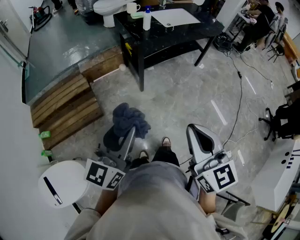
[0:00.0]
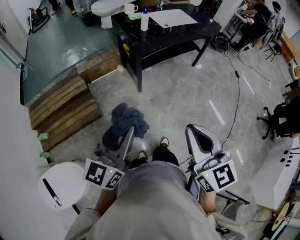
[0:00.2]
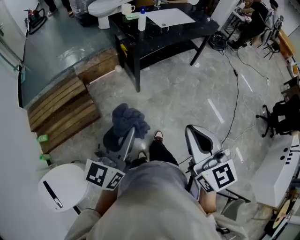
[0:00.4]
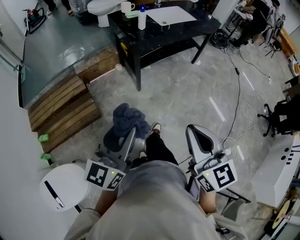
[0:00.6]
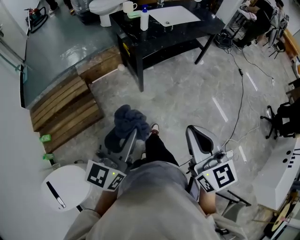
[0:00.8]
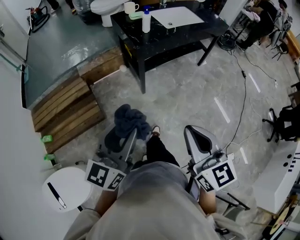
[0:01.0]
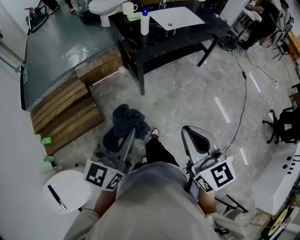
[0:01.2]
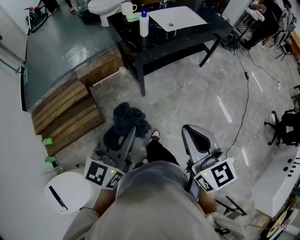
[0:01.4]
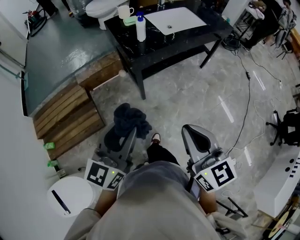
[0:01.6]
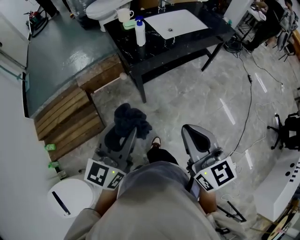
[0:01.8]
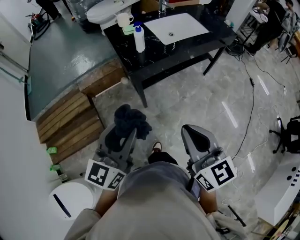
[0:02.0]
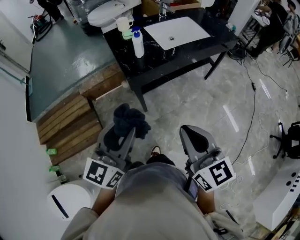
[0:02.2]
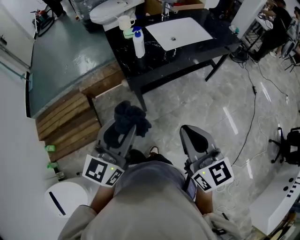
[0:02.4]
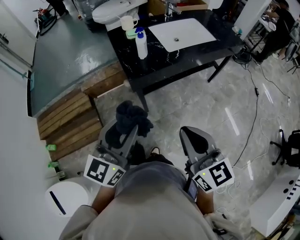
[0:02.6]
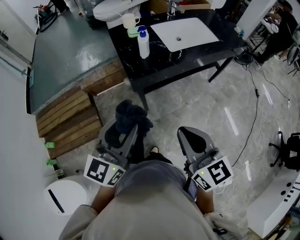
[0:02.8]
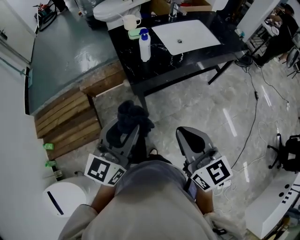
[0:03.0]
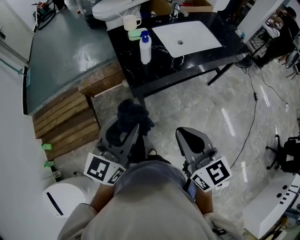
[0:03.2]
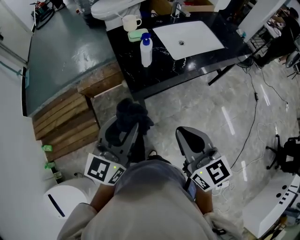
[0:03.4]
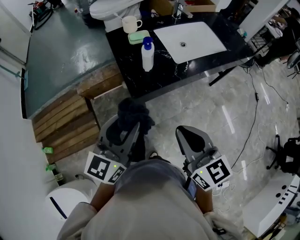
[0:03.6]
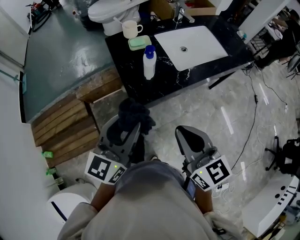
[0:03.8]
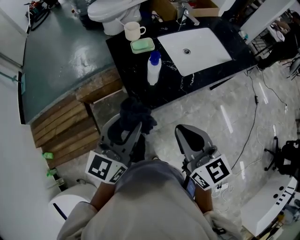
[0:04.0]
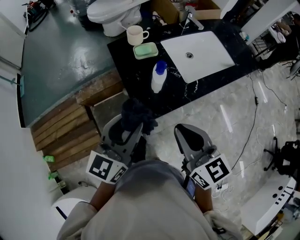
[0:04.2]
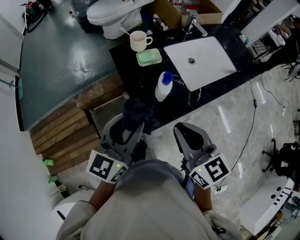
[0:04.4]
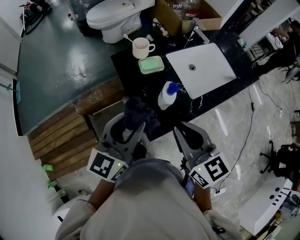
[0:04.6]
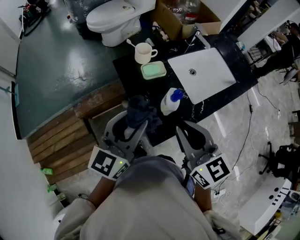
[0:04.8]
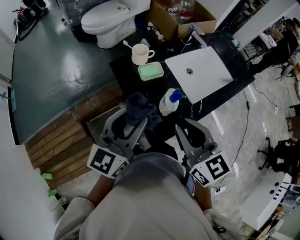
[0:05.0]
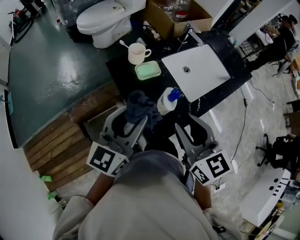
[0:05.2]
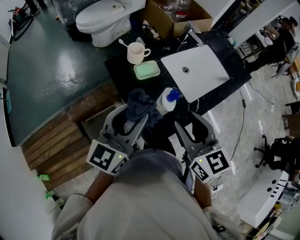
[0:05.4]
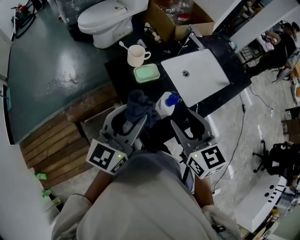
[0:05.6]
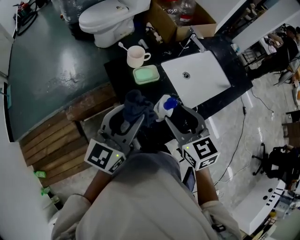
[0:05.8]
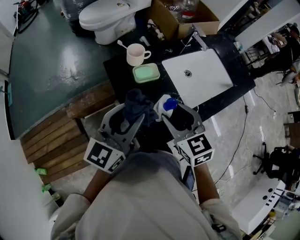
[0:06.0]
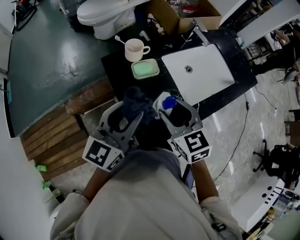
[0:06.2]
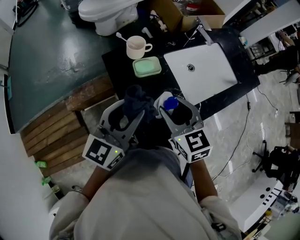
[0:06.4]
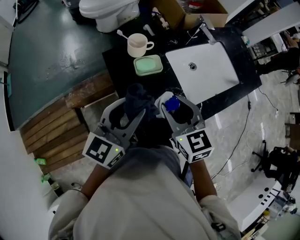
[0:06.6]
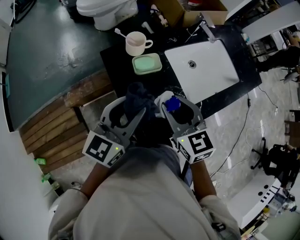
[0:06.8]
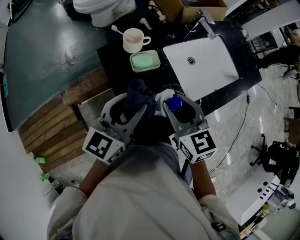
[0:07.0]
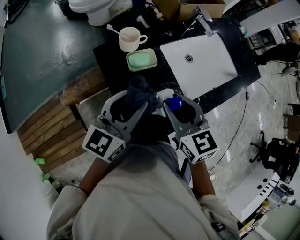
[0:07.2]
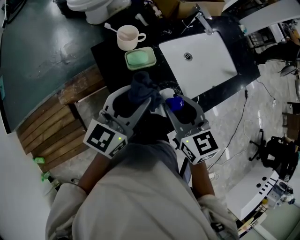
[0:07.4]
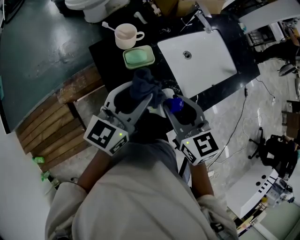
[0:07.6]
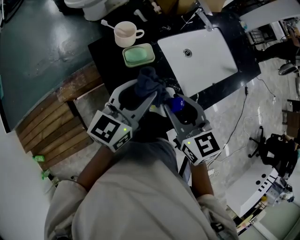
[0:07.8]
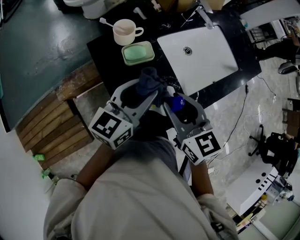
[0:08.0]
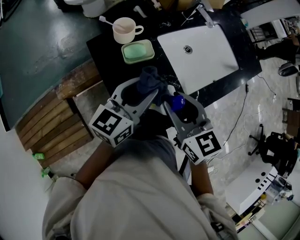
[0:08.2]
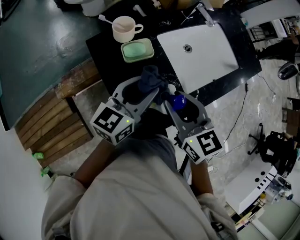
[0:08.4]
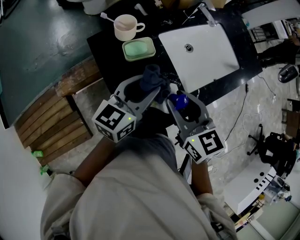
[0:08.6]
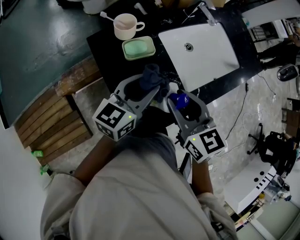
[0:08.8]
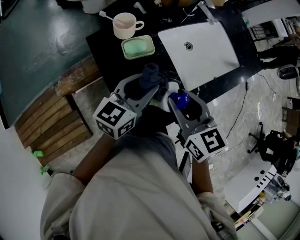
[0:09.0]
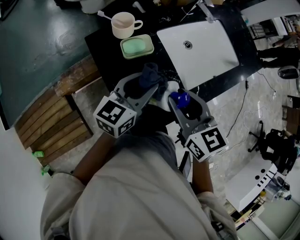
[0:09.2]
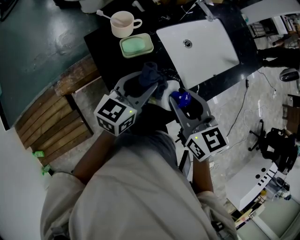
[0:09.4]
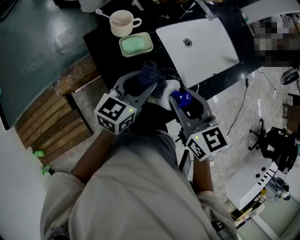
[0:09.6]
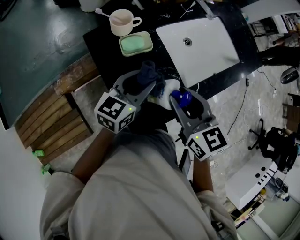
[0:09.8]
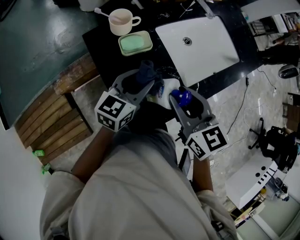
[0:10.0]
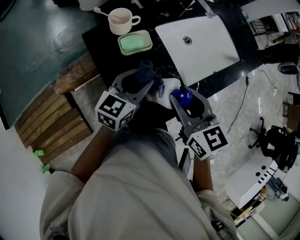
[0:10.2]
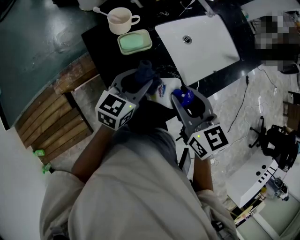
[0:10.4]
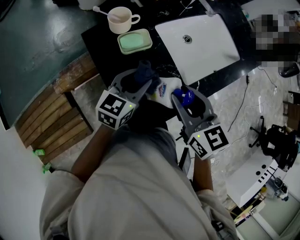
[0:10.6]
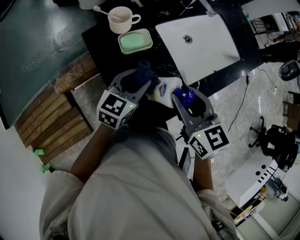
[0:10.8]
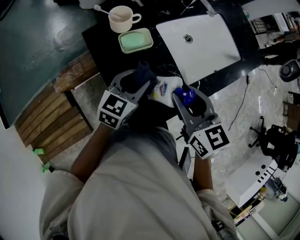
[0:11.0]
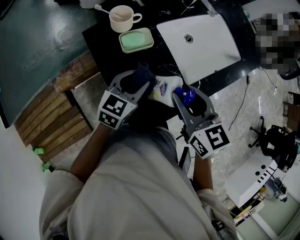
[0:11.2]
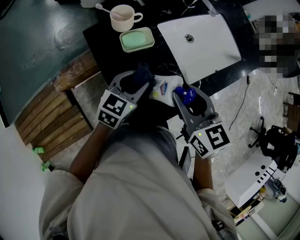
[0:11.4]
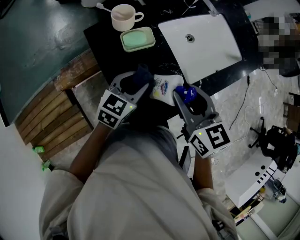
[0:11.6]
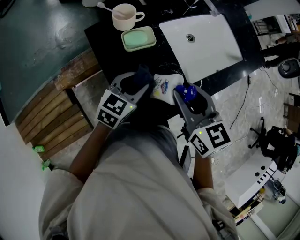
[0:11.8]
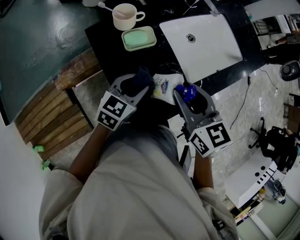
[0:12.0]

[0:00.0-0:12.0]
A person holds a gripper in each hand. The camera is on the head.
0:00.0 to 0:01.6: The grippers both shift forward by roughly 20 cm.
0:01.6 to 0:03.0: Both grippers travel together forward, roughly 15 cm.
0:03.0 to 0:04.4: The two grippers go some 25 cm forward.
0:04.4 to 0:06.0: The left gripper is displaced forward by roughly 10 cm; the right gripper heads forward and downward, covering roughly 15 cm, swivels about 20 degrees, and opens its fingers.
0:06.0 to 0:07.6: The left gripper travels forward by approximately 5 cm.
0:07.6 to 0:09.0: The left gripper heads downward, covering some 5 cm.
0:09.0 to 0:10.4: The left gripper moves downward, roughly 5 cm.
0:10.4 to 0:12.0: The grippers move only a little.

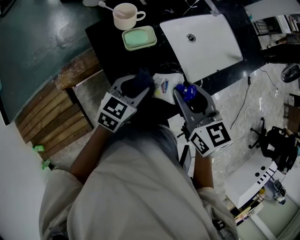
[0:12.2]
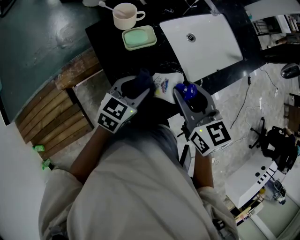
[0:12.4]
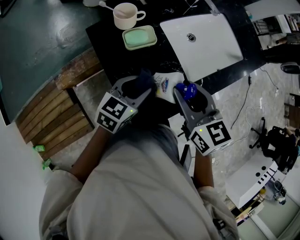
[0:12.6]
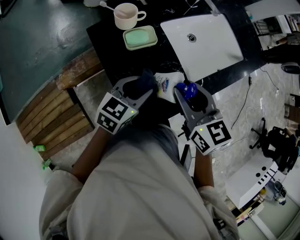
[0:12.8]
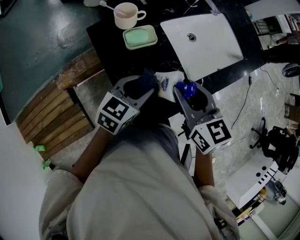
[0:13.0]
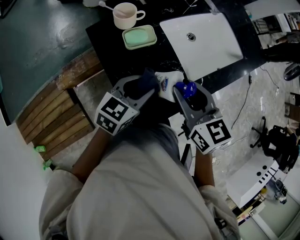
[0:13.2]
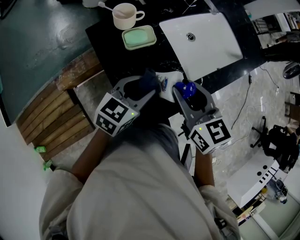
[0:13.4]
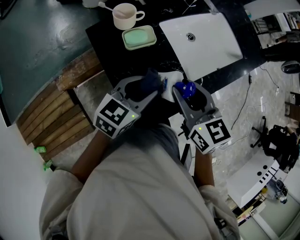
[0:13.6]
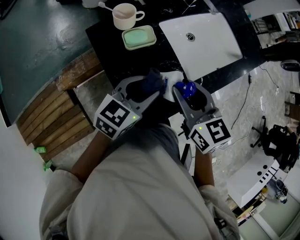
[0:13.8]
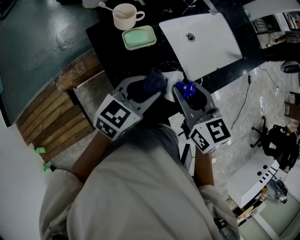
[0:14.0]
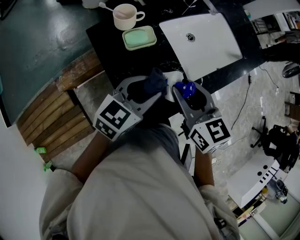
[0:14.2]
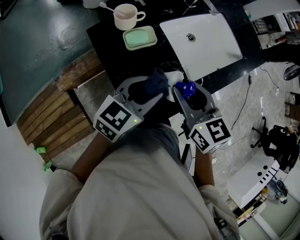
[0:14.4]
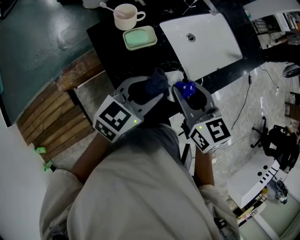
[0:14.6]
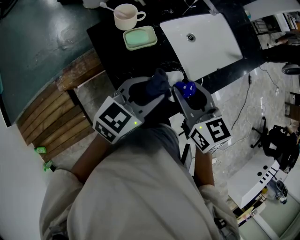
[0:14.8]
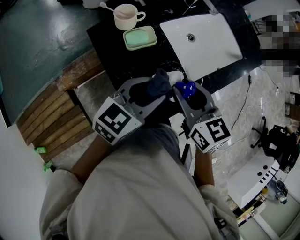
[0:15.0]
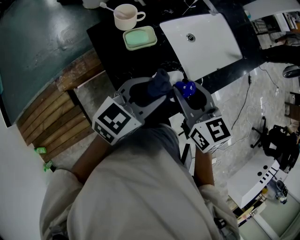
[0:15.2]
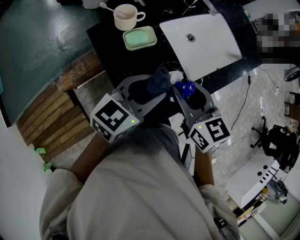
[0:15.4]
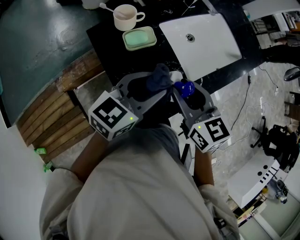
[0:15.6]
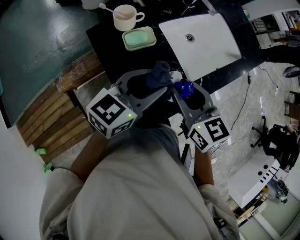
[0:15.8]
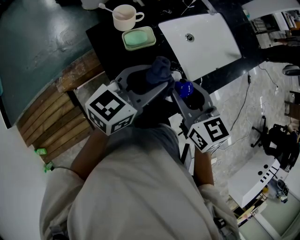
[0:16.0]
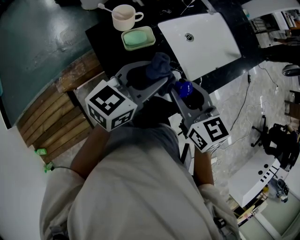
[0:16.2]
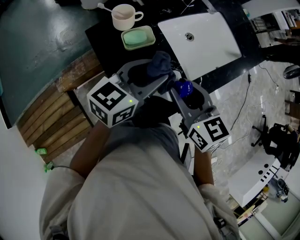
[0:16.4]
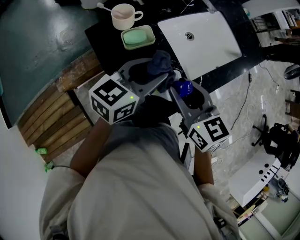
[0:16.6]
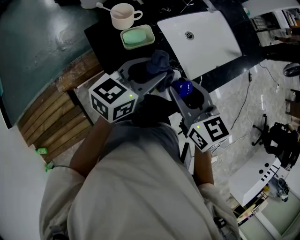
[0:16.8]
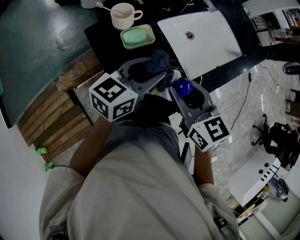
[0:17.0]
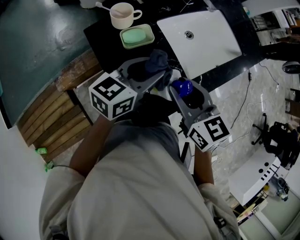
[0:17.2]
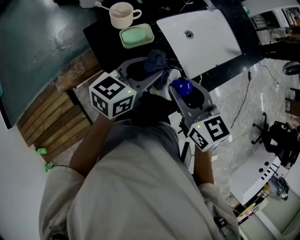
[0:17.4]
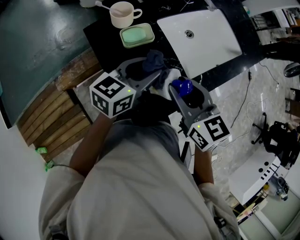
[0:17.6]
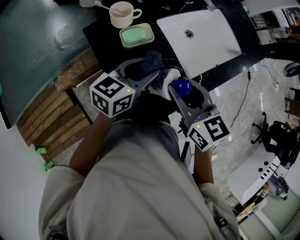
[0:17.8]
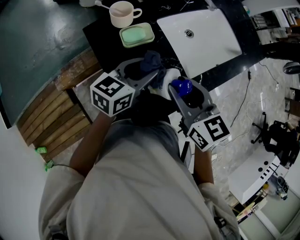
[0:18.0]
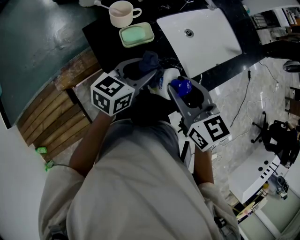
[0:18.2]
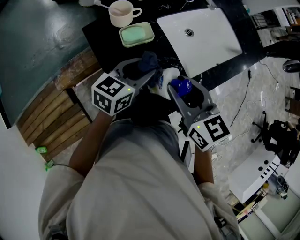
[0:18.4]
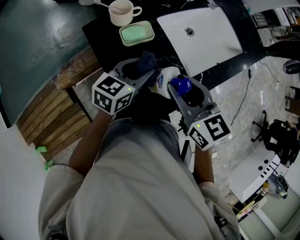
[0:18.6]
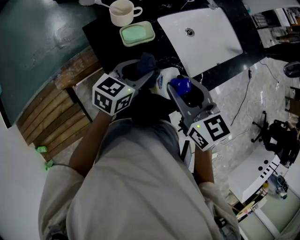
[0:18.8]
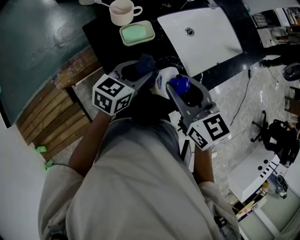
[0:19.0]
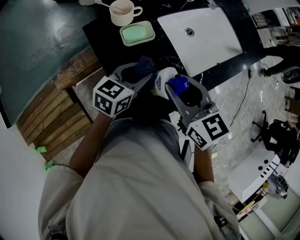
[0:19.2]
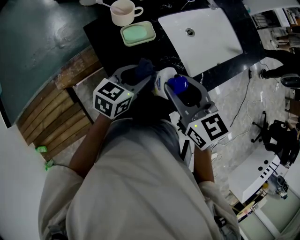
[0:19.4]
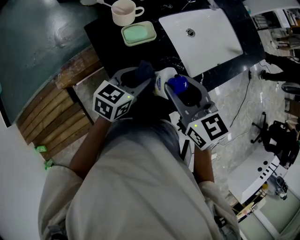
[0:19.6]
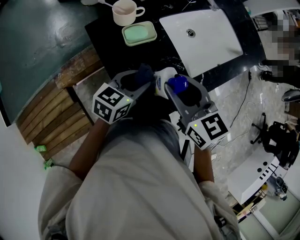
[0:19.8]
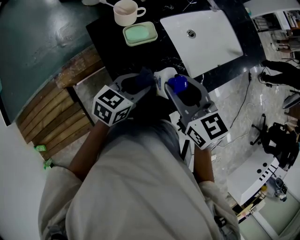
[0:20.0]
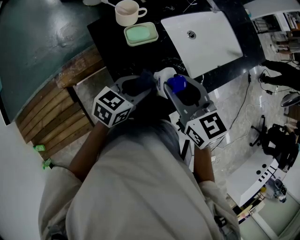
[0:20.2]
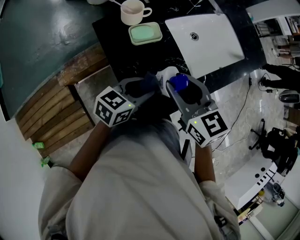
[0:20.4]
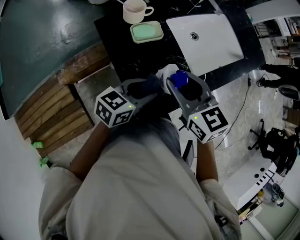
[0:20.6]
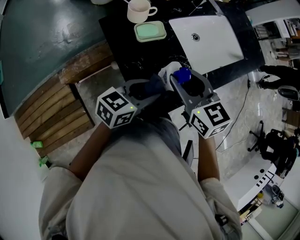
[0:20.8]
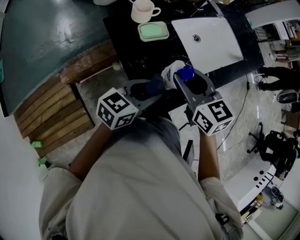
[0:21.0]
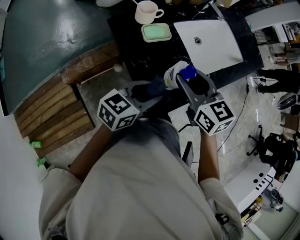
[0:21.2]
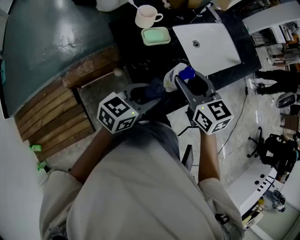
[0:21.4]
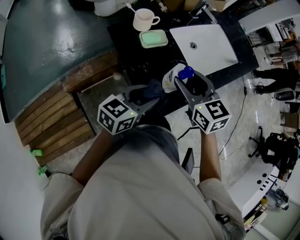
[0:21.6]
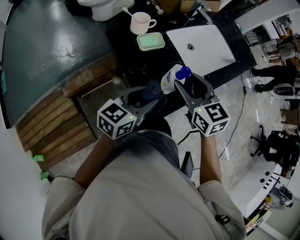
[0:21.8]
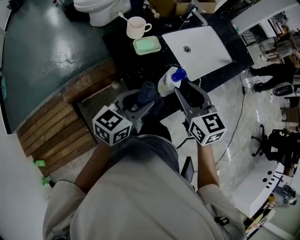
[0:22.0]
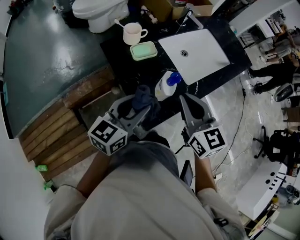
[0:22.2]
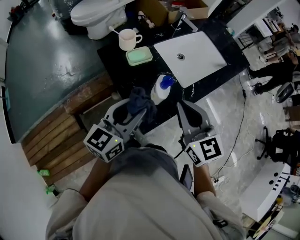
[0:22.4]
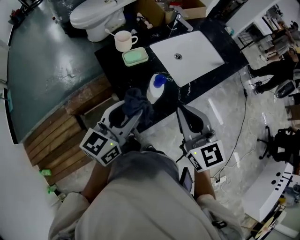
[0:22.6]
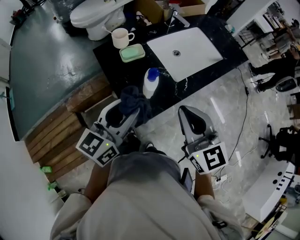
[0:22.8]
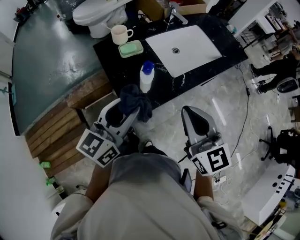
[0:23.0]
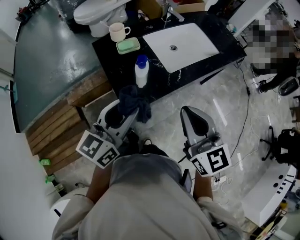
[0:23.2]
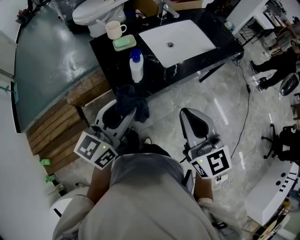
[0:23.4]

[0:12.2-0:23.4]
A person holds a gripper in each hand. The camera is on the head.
0:12.2 to 0:13.8: The left gripper shifts roughly 5 cm upward.
0:13.8 to 0:15.4: The grippers stay close to where they were, moving slightly.
0:15.4 to 0:17.0: The left gripper moves forward, roughly 5 cm.
0:17.0 to 0:18.6: The left gripper goes approximately 5 cm downward.
0:18.6 to 0:20.2: The left gripper moves backward, some 5 cm.
0:20.2 to 0:21.8: The left gripper travels backward and upward by approximately 10 cm.
0:21.8 to 0:23.4: The right gripper is displaced backward, to the right and upward by approximately 25 cm, rotates about 20 degrees, and closes up. The left gripper travels upward, backward and to the right by about 20 cm, and swivels about 20 degrees.

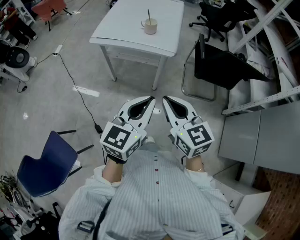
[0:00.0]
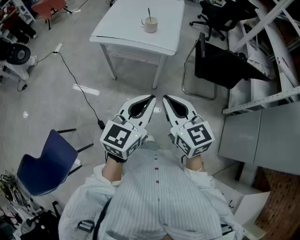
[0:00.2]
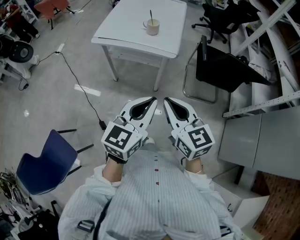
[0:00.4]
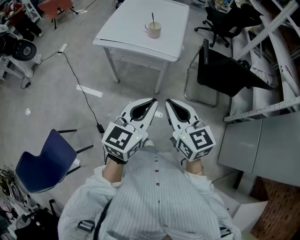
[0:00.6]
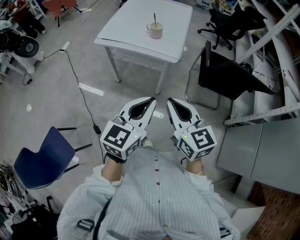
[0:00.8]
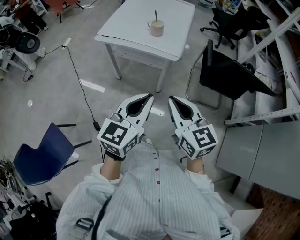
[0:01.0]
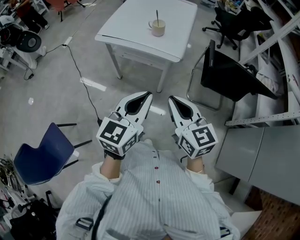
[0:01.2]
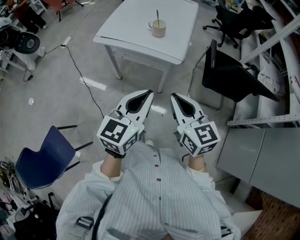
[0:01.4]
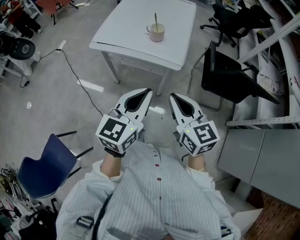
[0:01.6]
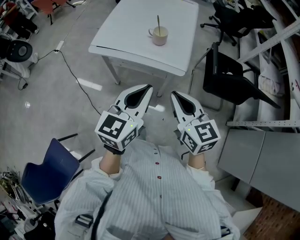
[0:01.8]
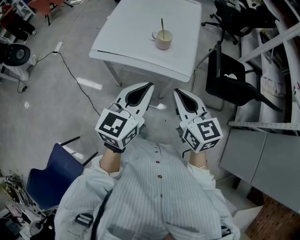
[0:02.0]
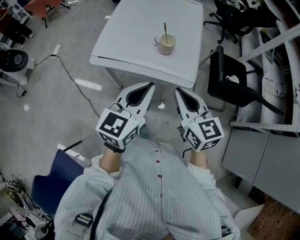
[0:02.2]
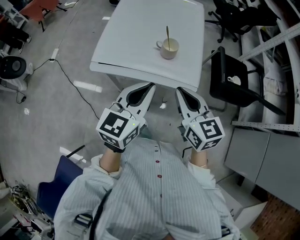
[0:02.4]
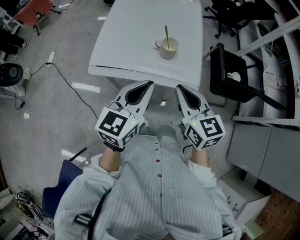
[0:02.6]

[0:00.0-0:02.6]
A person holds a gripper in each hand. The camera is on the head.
0:00.0 to 0:01.2: Both grippers move forward, roughly 5 cm.
0:01.2 to 0:02.6: The left gripper travels forward and to the left by approximately 35 cm. Meanwhile the right gripper moves forward, roughly 30 cm.
